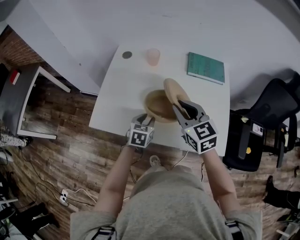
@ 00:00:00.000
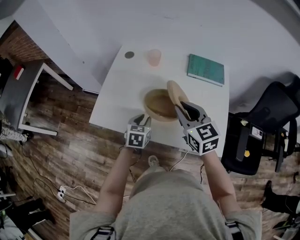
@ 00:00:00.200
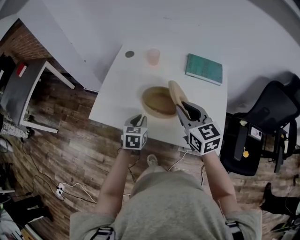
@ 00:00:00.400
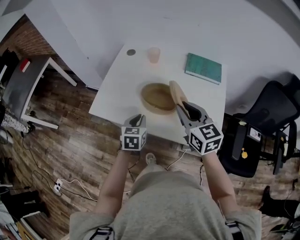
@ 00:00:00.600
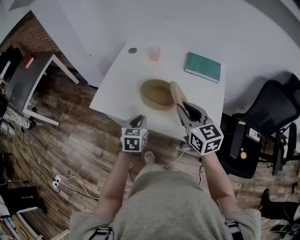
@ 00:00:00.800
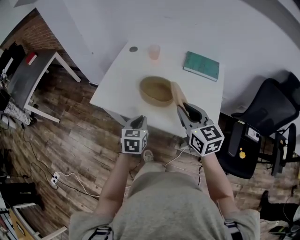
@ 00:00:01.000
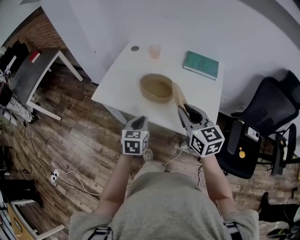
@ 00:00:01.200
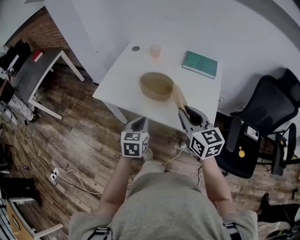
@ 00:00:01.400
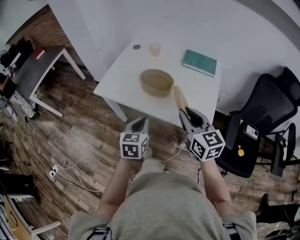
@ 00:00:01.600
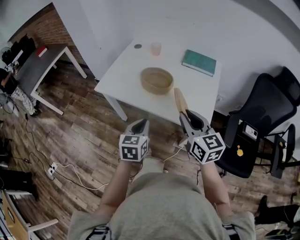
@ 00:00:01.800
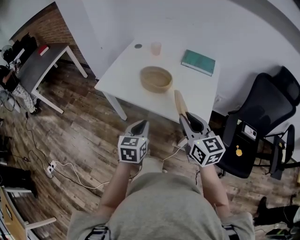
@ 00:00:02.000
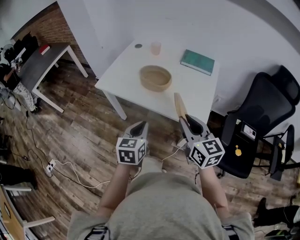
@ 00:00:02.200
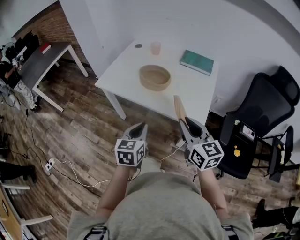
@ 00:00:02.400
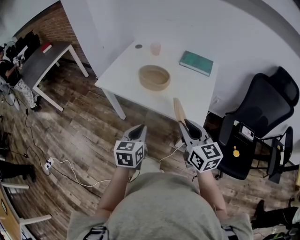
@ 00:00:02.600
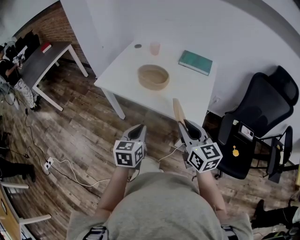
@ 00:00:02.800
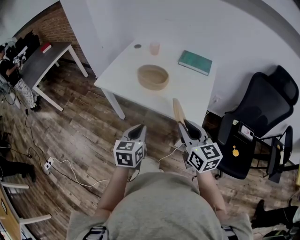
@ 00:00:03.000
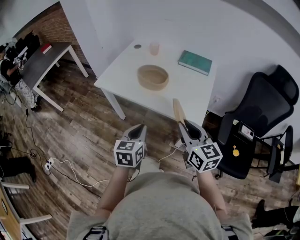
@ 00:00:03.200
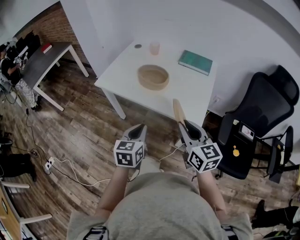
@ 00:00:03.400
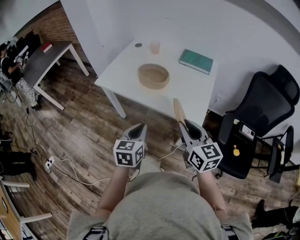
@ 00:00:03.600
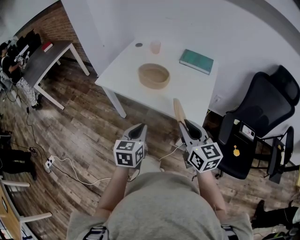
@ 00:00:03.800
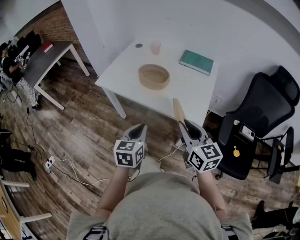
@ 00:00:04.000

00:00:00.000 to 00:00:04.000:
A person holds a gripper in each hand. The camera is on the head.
00:00:00.000 to 00:00:01.400: The right gripper moves backward, some 20 cm. The left gripper heads backward and upward, covering some 25 cm, changes its angle by roughly 20 degrees, and closes up.
00:00:01.400 to 00:00:02.600: Both grippers travel together backward, approximately 15 cm.
00:00:02.600 to 00:00:04.000: Both grippers stay put.

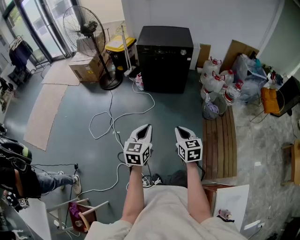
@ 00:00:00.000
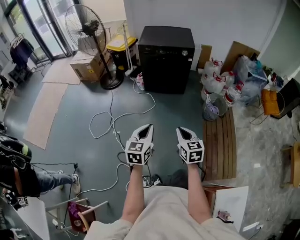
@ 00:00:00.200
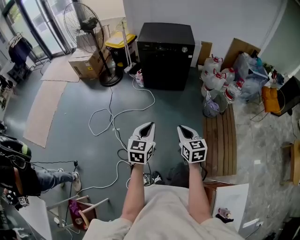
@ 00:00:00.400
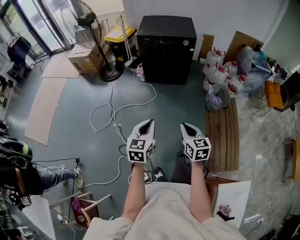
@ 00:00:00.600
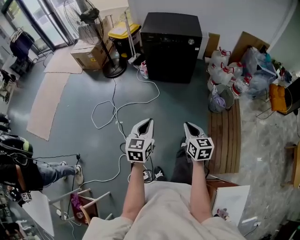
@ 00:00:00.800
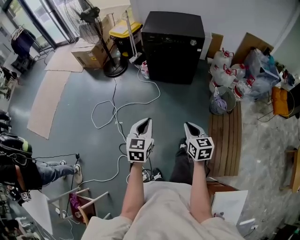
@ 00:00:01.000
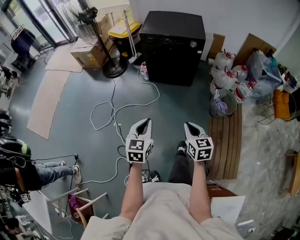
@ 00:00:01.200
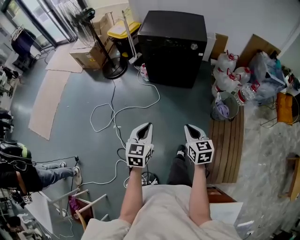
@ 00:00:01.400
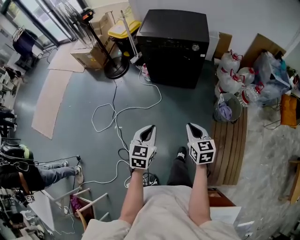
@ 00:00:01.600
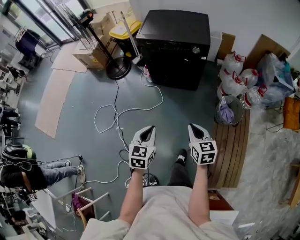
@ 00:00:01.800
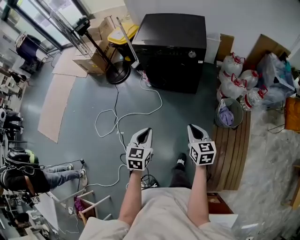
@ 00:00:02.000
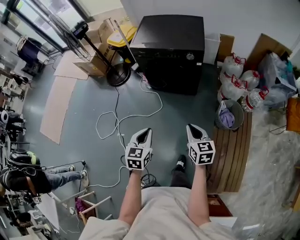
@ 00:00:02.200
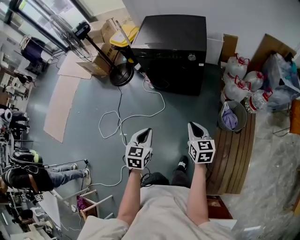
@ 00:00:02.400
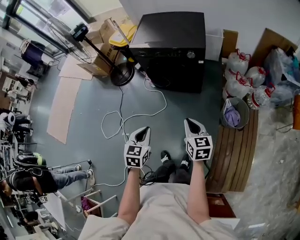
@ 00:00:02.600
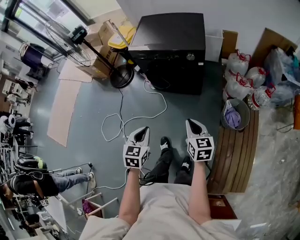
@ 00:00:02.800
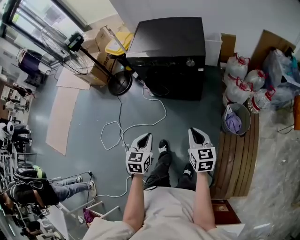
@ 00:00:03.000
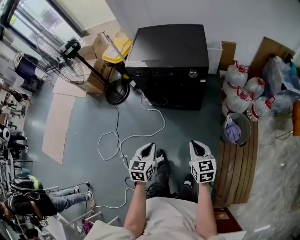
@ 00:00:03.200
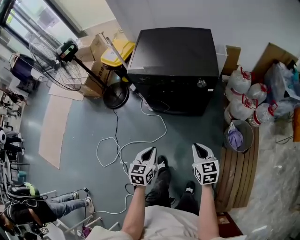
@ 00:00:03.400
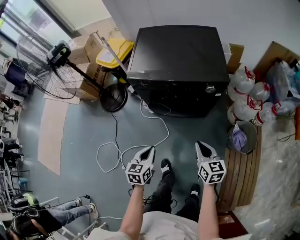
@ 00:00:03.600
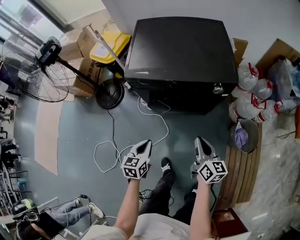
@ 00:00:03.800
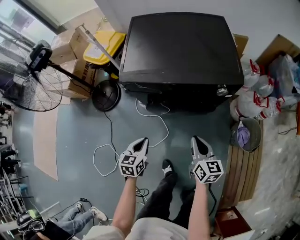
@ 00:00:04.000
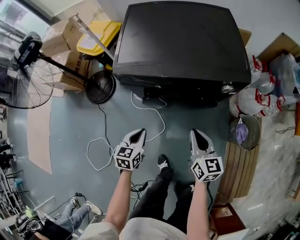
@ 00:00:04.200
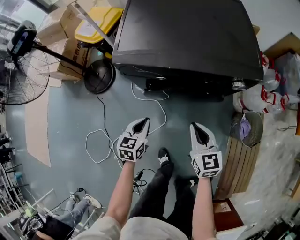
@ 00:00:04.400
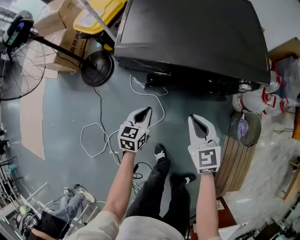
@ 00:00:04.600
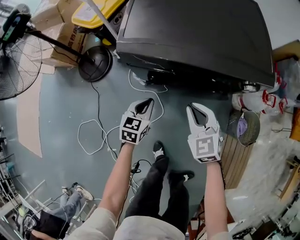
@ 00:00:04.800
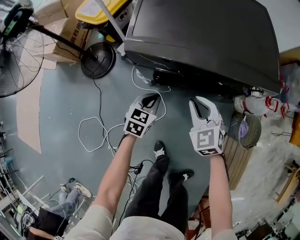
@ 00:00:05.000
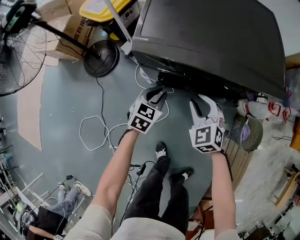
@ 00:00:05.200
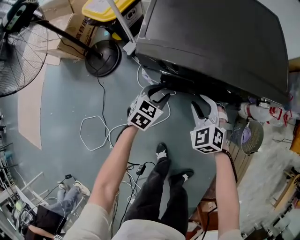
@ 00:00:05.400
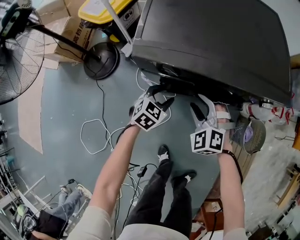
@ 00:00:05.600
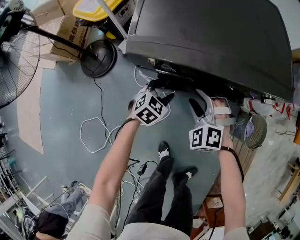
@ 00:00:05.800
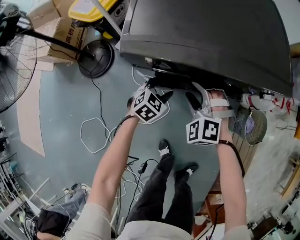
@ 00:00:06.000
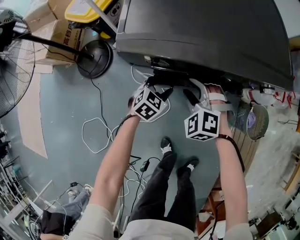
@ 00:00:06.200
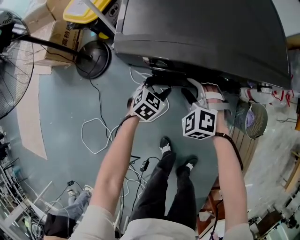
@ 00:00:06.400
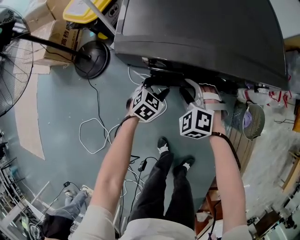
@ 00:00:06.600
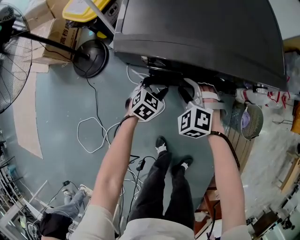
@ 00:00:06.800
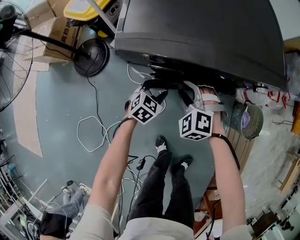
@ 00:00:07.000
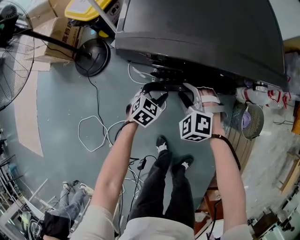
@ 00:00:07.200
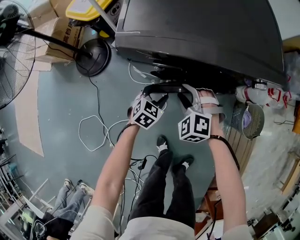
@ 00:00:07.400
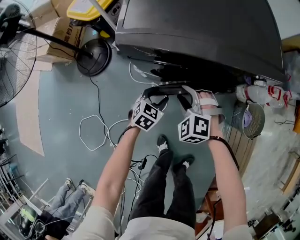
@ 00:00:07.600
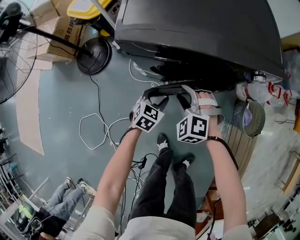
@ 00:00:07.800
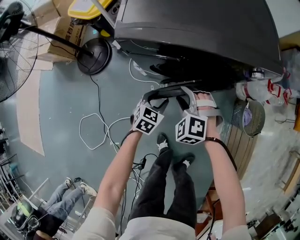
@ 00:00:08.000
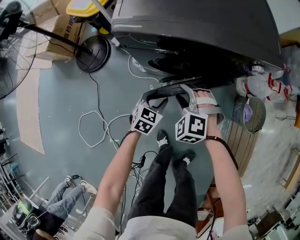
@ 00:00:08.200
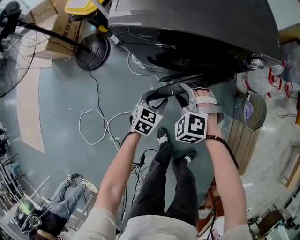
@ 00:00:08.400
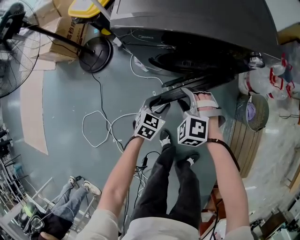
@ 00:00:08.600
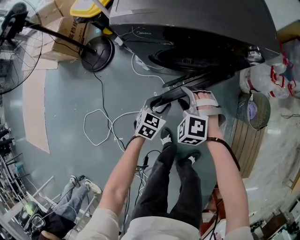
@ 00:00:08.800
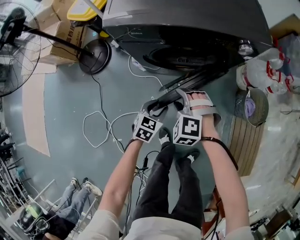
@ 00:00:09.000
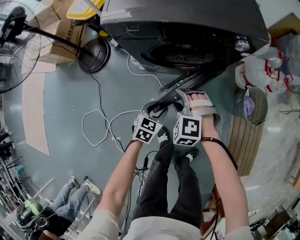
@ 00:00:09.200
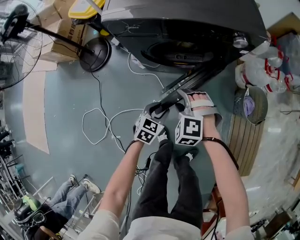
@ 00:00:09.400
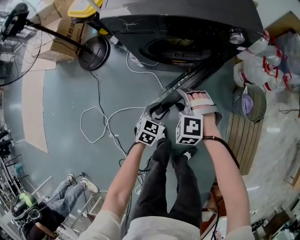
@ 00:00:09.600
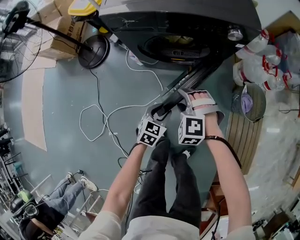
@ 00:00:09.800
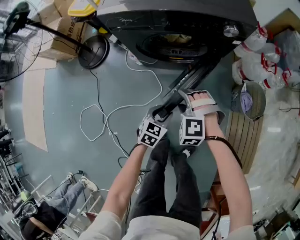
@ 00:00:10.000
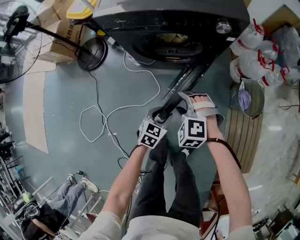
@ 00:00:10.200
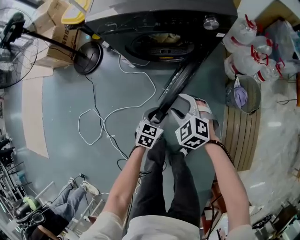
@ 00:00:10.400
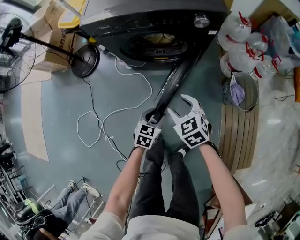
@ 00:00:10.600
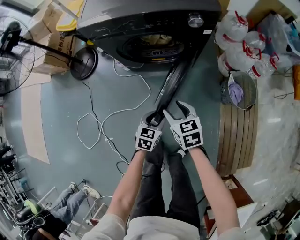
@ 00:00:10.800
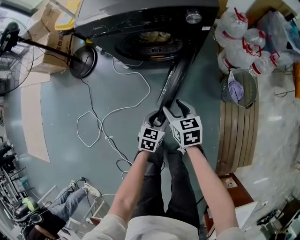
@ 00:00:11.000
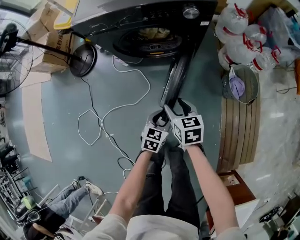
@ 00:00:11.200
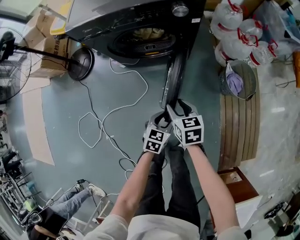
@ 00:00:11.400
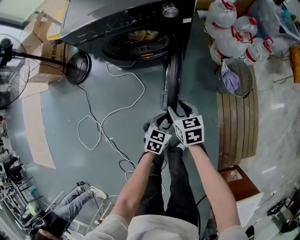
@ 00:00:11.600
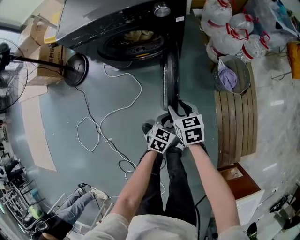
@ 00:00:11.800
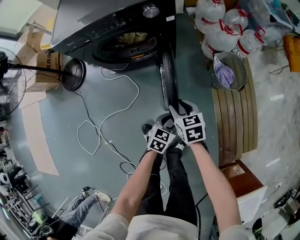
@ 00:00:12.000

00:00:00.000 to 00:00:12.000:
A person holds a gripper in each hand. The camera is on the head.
00:00:00.000 to 00:00:01.600: The two grippers go roughly 25 cm forward and to the right.
00:00:01.600 to 00:00:03.000: The right gripper travels forward and to the right by approximately 20 cm, while the left gripper is displaced forward by roughly 15 cm.
00:00:03.000 to 00:00:04.400: The left gripper goes about 50 cm forward, downward and to the left. Meanwhile the right gripper travels forward, to the left and downward by some 40 cm.
00:00:04.400 to 00:00:06.000: The right gripper heads to the left, forward and downward, covering some 20 cm, rolls counterclockwise, seen from behind, by some 70 degrees, and opens. Meanwhile the left gripper moves forward and downward, about 15 cm, changes its angle by approximately 40 degrees, and opens up.
00:00:06.000 to 00:00:07.600: Both grippers move backward, some 5 cm.
00:00:07.600 to 00:00:09.000: The right gripper heads backward, covering roughly 10 cm, while the left gripper is displaced backward and to the right by some 15 cm.
00:00:09.000 to 00:00:10.400: The left gripper goes about 15 cm backward and to the right. The right gripper is displaced to the right and backward by about 15 cm, and changes its angle by some 20 degrees.
00:00:10.400 to 00:00:12.000: Both grippers travel together to the right, some 20 cm. The right gripper rolls clockwise, seen from behind, by roughly 60 degrees.

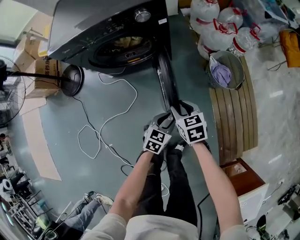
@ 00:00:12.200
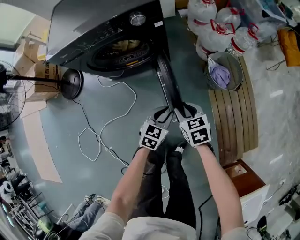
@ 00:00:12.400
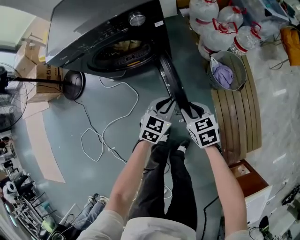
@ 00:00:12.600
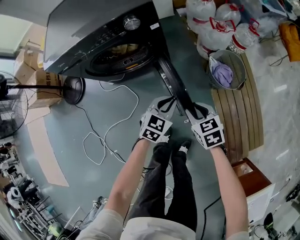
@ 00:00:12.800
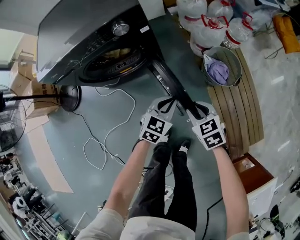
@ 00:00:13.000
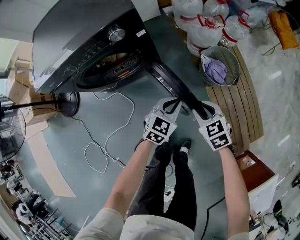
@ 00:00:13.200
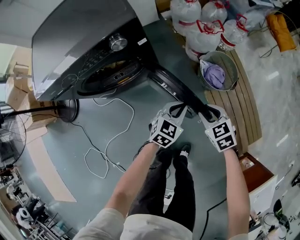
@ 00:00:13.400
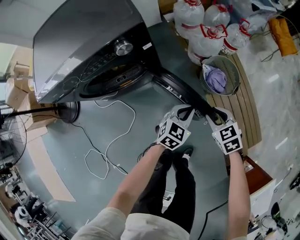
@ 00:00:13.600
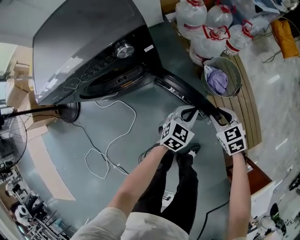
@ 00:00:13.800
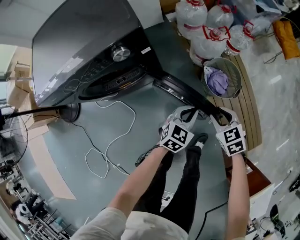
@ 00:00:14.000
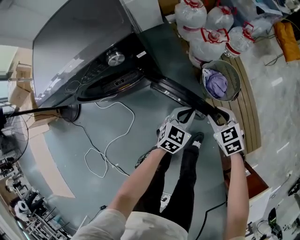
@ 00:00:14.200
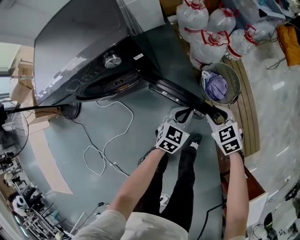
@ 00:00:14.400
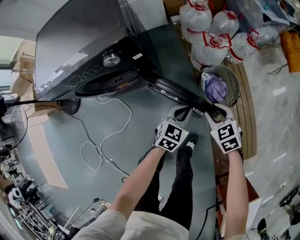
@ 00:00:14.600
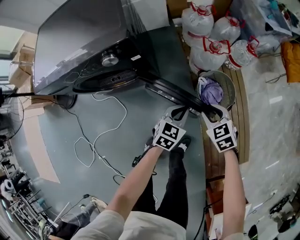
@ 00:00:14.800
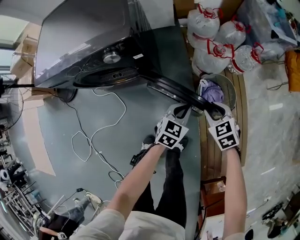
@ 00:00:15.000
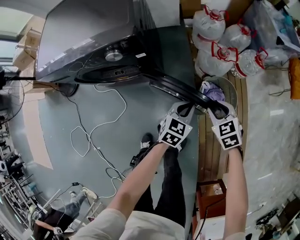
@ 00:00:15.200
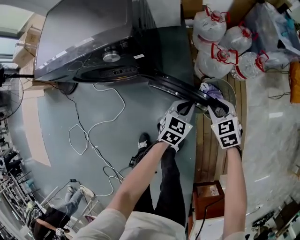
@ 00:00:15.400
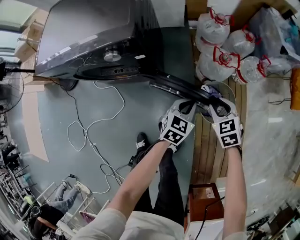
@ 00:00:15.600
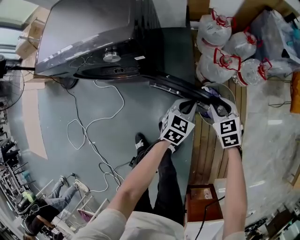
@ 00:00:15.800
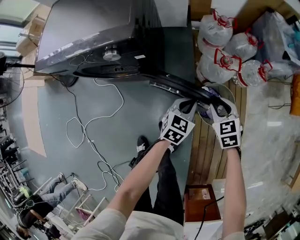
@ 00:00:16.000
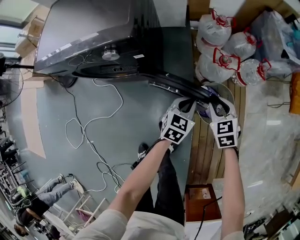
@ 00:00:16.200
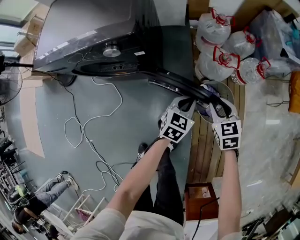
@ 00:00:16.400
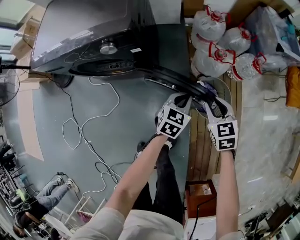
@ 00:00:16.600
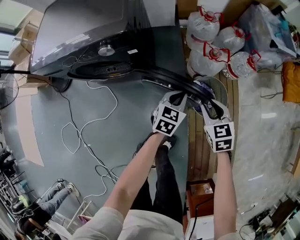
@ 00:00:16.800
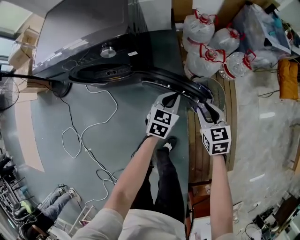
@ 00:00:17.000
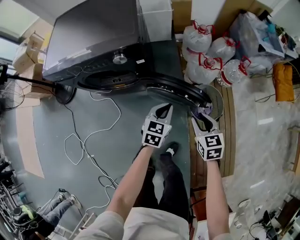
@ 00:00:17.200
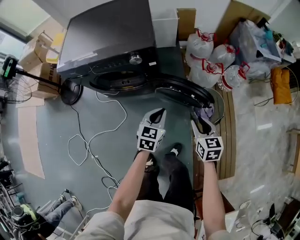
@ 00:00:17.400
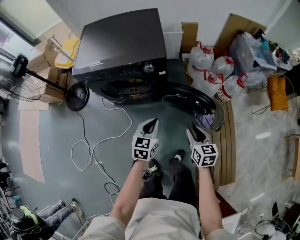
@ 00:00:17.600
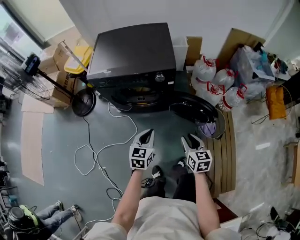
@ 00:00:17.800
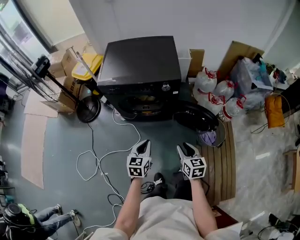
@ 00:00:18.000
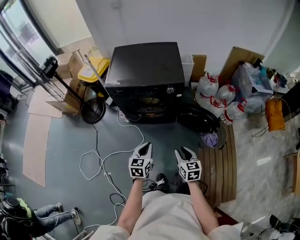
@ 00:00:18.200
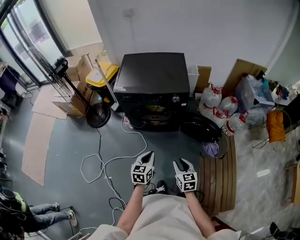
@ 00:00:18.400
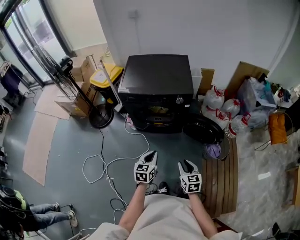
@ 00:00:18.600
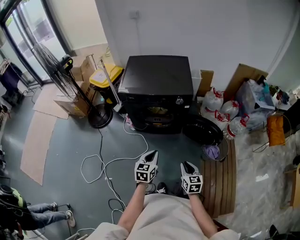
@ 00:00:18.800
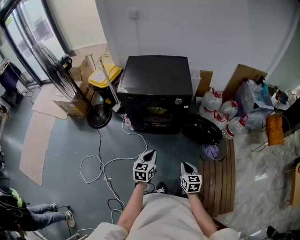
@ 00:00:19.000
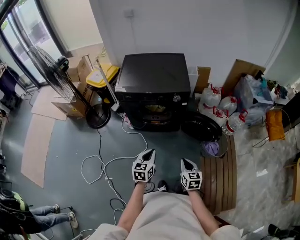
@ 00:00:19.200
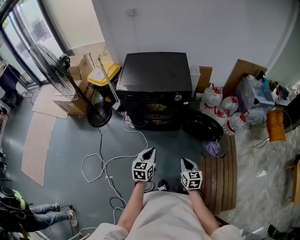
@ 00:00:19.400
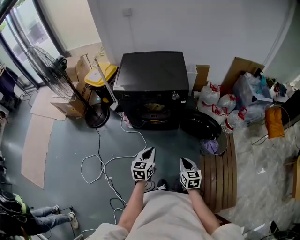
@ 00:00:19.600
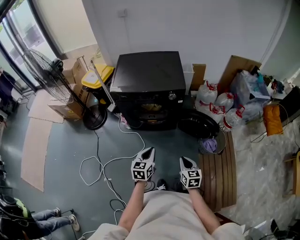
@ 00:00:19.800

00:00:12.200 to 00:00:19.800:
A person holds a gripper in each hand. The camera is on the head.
00:00:12.200 to 00:00:13.800: The left gripper is displaced forward and to the right by some 20 cm, swivels some 20 degrees, and closes; the right gripper heads to the right and forward, covering approximately 20 cm.
00:00:13.800 to 00:00:15.200: The grippers both shift forward and to the right by approximately 15 cm. The left gripper rotates approximately 20 degrees.
00:00:16.800 to 00:00:18.200: Both grippers move to the left, backward and upward, roughly 50 cm. The left gripper changes its angle by approximately 30 degrees.
00:00:18.200 to 00:00:19.800: The right gripper shifts by roughly 5 cm, and closes.
